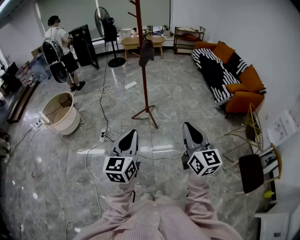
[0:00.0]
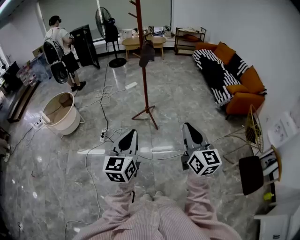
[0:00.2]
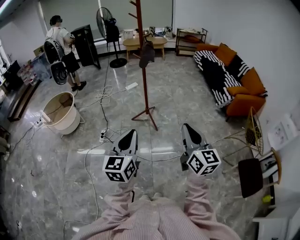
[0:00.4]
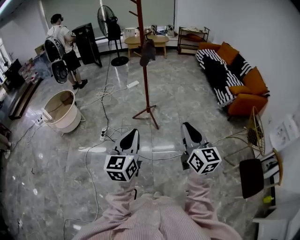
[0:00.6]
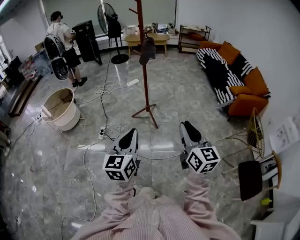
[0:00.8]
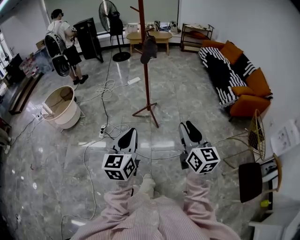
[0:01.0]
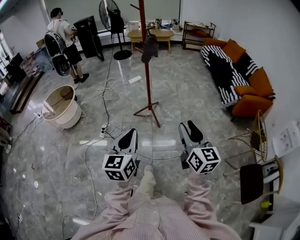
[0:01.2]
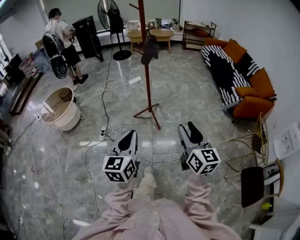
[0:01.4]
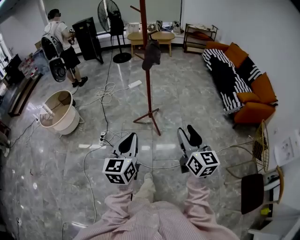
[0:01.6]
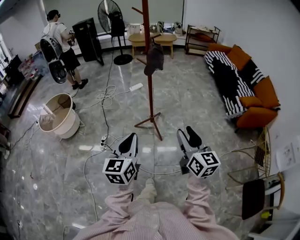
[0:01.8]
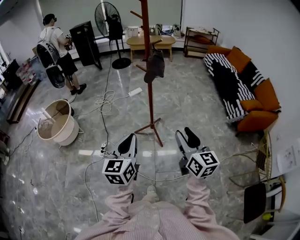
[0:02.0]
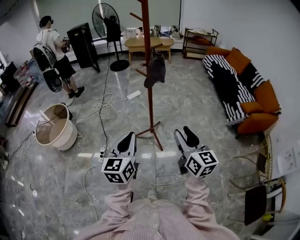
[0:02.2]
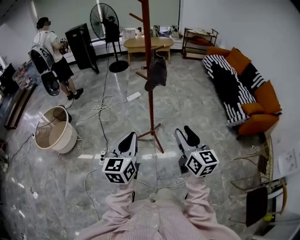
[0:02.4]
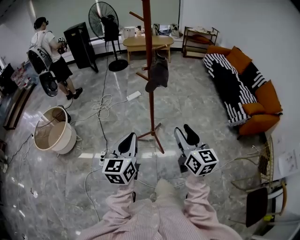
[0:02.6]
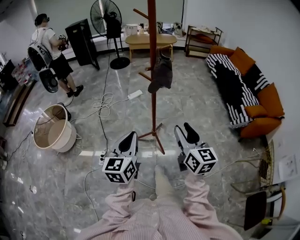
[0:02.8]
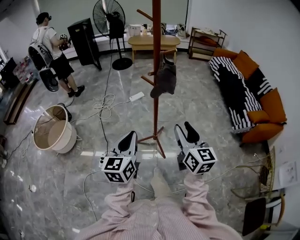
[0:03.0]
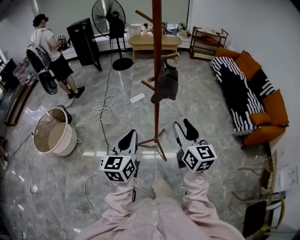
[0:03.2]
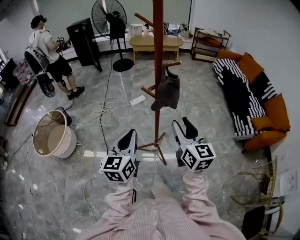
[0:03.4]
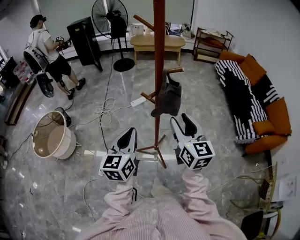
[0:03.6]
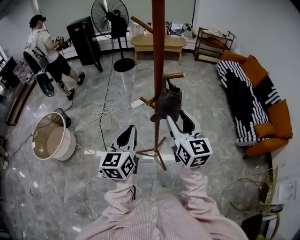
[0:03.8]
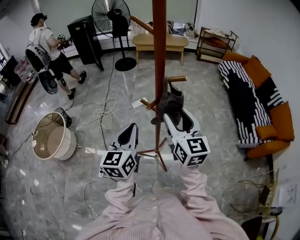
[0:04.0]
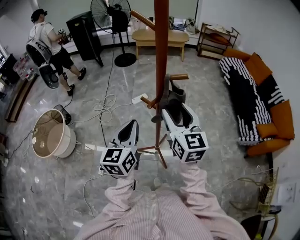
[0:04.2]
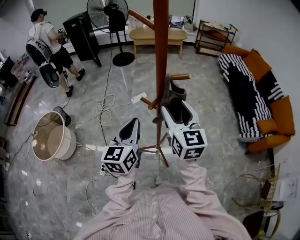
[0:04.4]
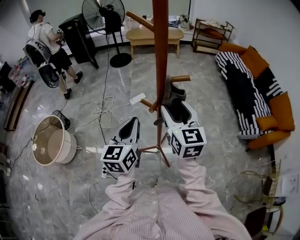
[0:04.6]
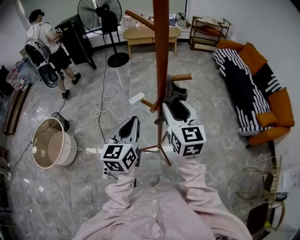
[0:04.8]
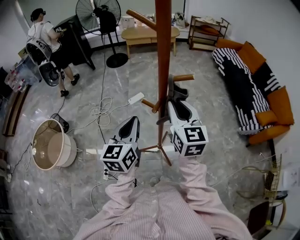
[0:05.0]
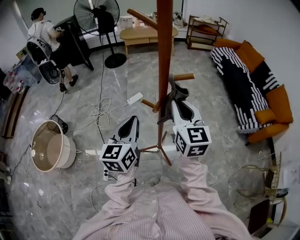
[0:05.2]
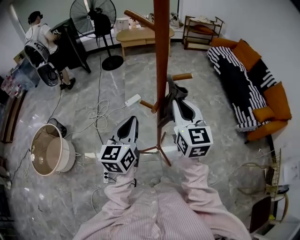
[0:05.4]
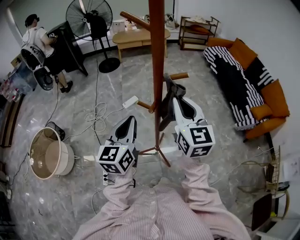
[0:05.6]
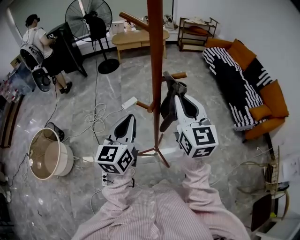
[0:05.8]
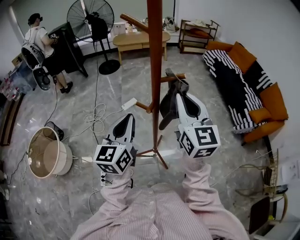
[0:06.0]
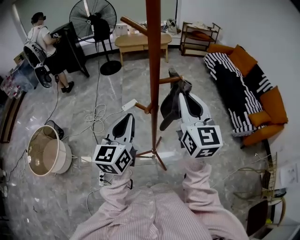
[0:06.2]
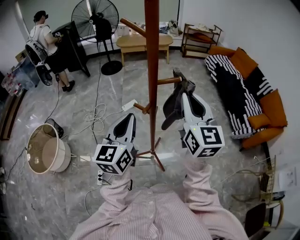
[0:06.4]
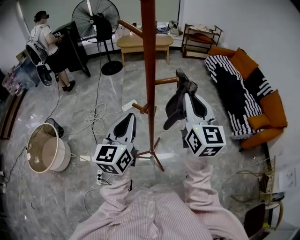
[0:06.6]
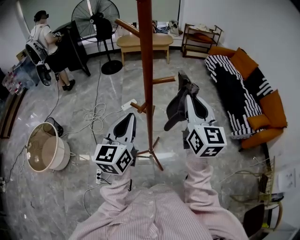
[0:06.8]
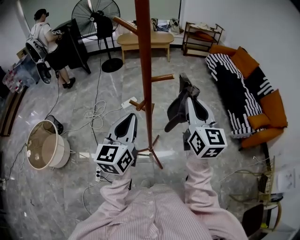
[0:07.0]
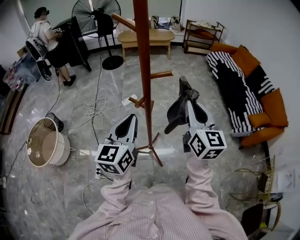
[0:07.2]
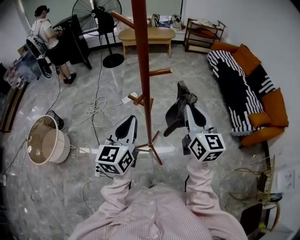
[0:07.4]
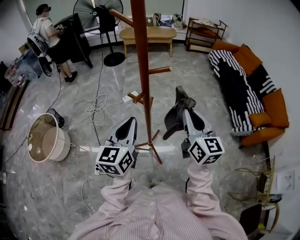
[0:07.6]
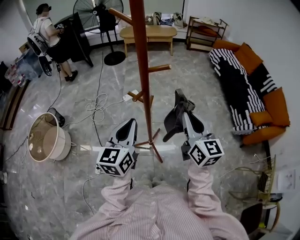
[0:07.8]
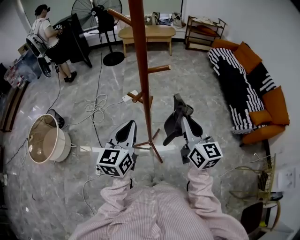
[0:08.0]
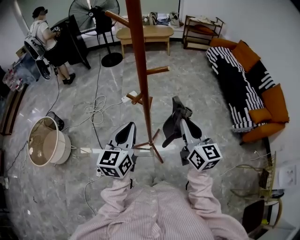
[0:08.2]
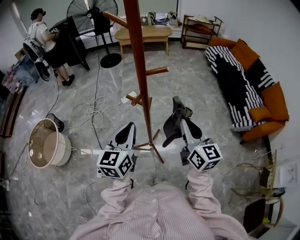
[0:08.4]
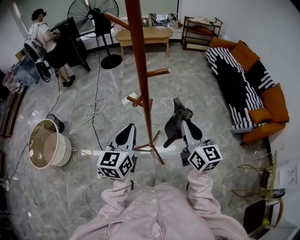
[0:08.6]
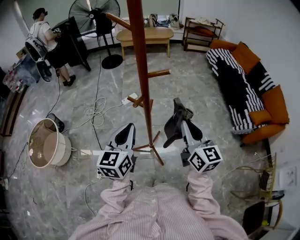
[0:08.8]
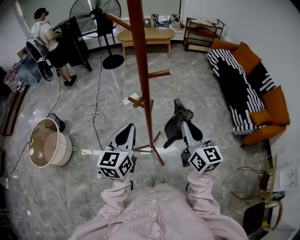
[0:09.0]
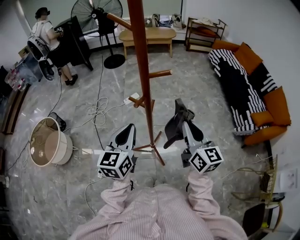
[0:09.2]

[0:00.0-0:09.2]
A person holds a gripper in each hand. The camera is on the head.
0:00.0 to 0:01.6: Both grippers move forward, some 15 cm. The right gripper opens up.
0:01.6 to 0:03.0: The grippers both shift forward by approximately 30 cm.
0:03.0 to 0:04.6: The two grippers go approximately 25 cm forward.
0:04.6 to 0:06.2: The right gripper heads upward, covering roughly 10 cm, and closes its fingers.
0:06.2 to 0:07.6: The right gripper goes approximately 10 cm downward and to the right; the left gripper travels to the right by approximately 5 cm.
0:07.6 to 0:09.2: The grippers make only small movements.

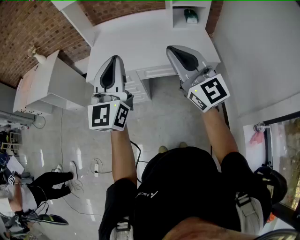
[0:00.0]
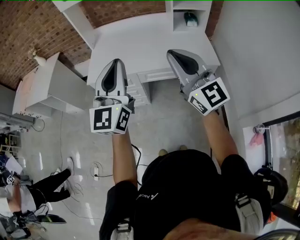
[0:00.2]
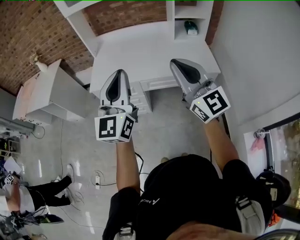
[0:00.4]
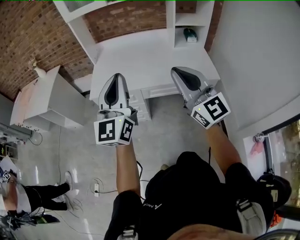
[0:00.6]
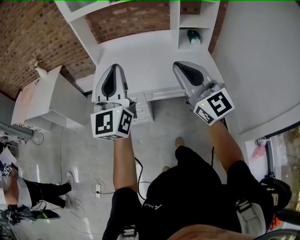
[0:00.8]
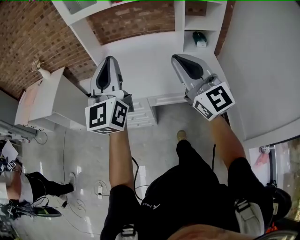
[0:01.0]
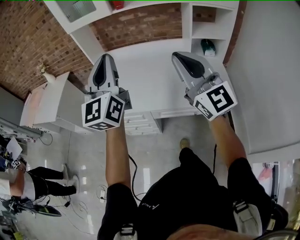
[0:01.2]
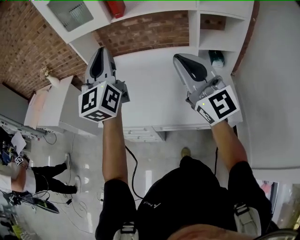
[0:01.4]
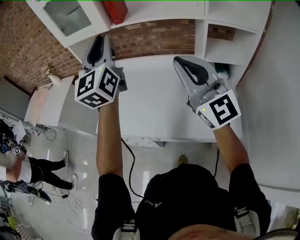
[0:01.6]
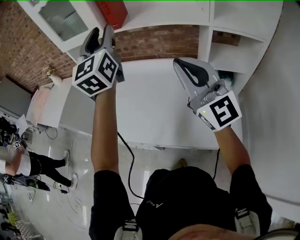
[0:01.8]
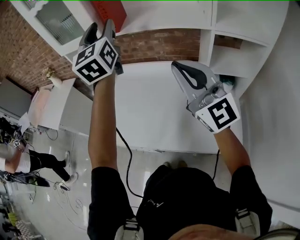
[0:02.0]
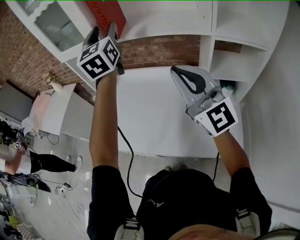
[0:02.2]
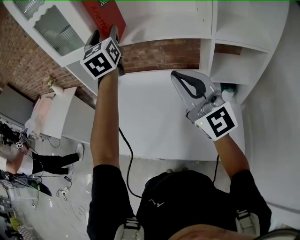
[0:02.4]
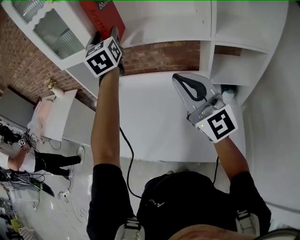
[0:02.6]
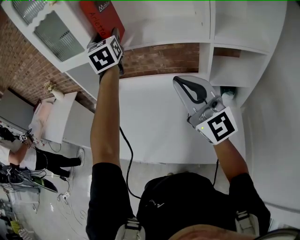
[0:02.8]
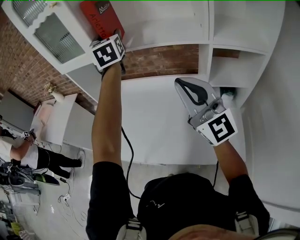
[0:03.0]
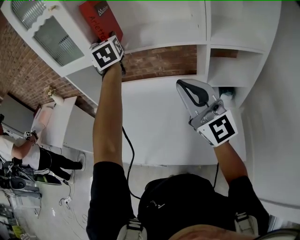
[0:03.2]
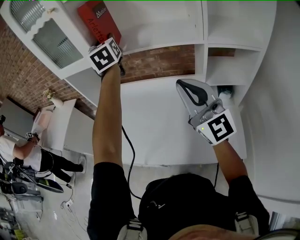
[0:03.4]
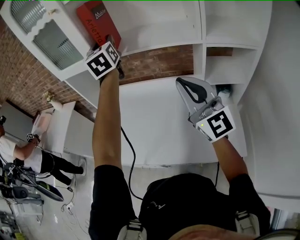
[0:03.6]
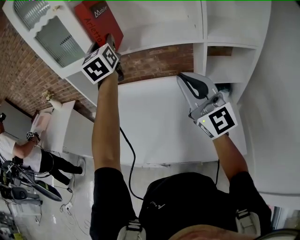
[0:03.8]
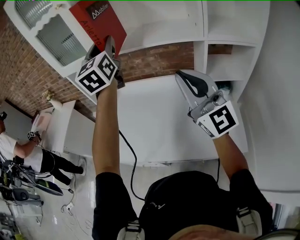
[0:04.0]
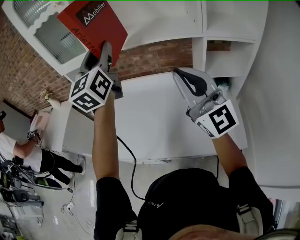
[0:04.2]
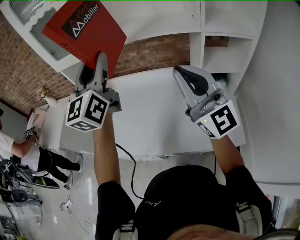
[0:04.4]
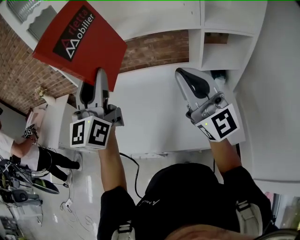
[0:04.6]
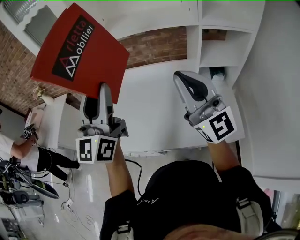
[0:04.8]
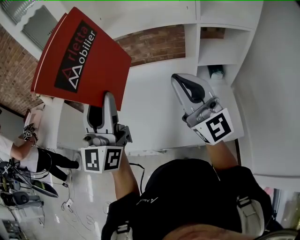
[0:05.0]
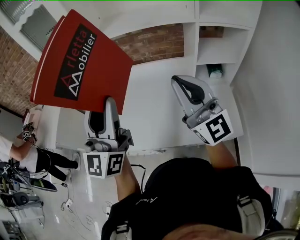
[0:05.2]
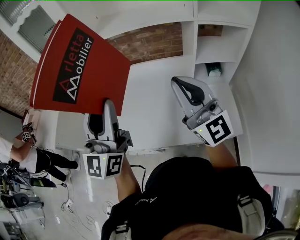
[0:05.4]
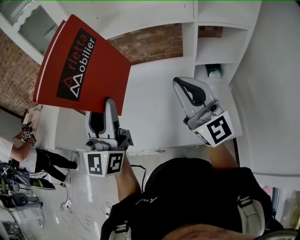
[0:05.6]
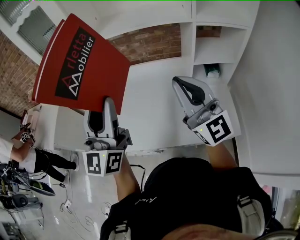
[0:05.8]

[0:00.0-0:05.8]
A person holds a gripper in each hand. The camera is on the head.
0:00.0 to 0:01.4: The two grippers go some 30 cm forward.
0:01.4 to 0:02.8: The left gripper moves forward, some 30 cm, changes its angle by about 20 degrees, and opens. Meanwhile the right gripper is displaced forward and to the right by some 15 cm.
0:02.8 to 0:04.4: The left gripper moves backward, roughly 20 cm, swivels about 30 degrees, and closes up, while the right gripper moves about 5 cm.
0:04.4 to 0:05.8: The left gripper heads backward and downward, covering approximately 15 cm. Meanwhile the right gripper goes roughly 5 cm downward.

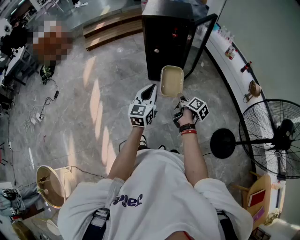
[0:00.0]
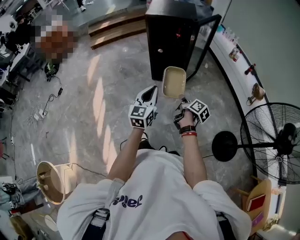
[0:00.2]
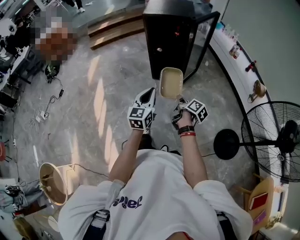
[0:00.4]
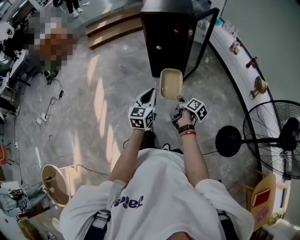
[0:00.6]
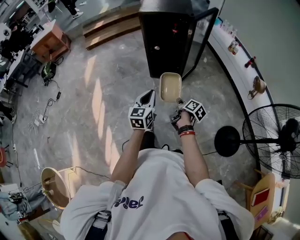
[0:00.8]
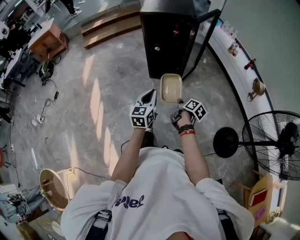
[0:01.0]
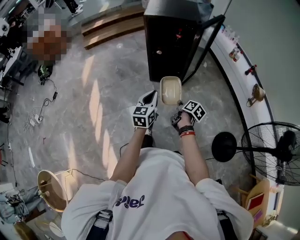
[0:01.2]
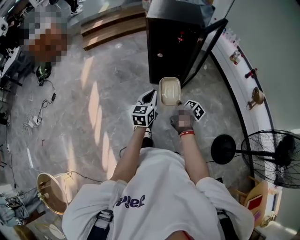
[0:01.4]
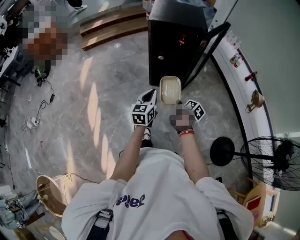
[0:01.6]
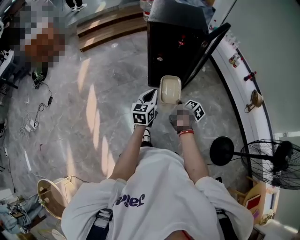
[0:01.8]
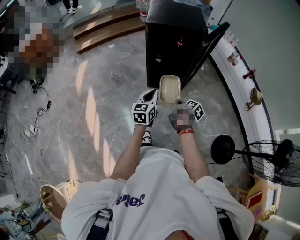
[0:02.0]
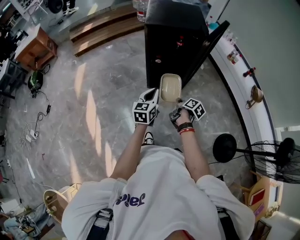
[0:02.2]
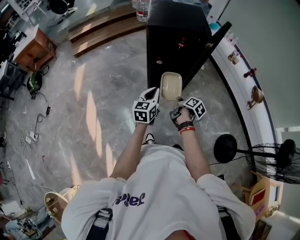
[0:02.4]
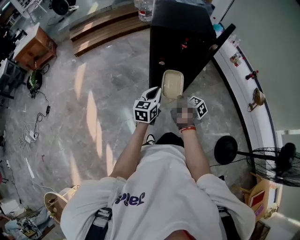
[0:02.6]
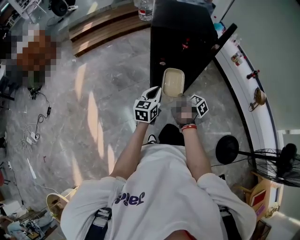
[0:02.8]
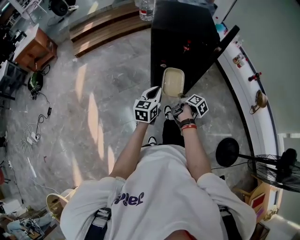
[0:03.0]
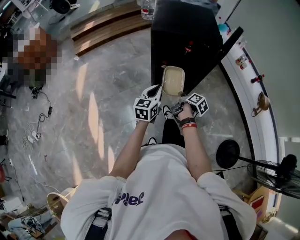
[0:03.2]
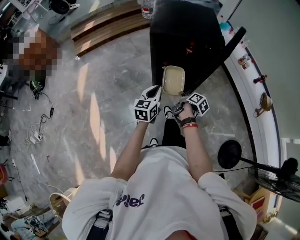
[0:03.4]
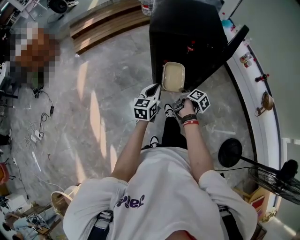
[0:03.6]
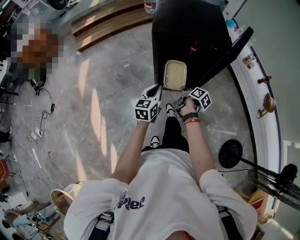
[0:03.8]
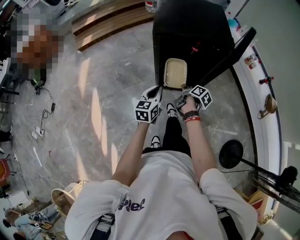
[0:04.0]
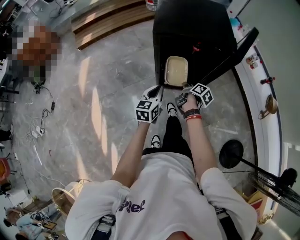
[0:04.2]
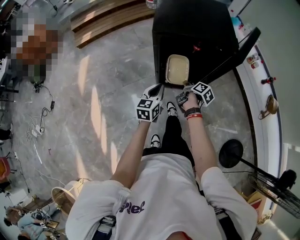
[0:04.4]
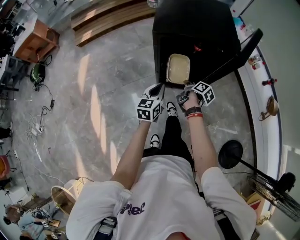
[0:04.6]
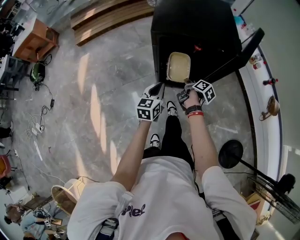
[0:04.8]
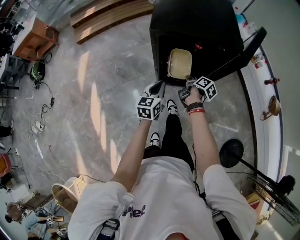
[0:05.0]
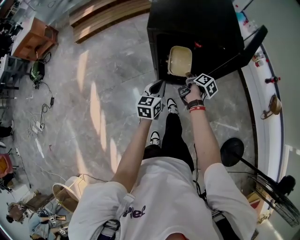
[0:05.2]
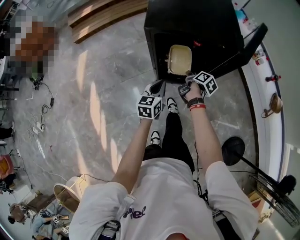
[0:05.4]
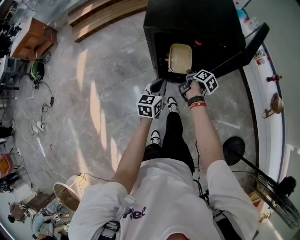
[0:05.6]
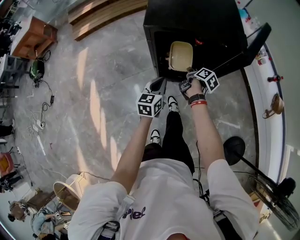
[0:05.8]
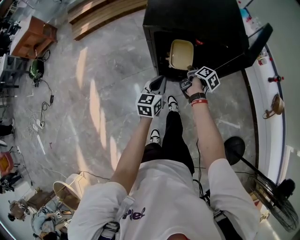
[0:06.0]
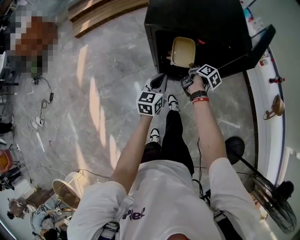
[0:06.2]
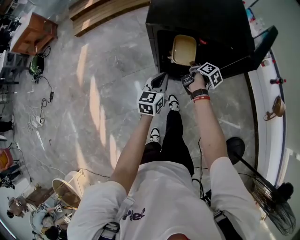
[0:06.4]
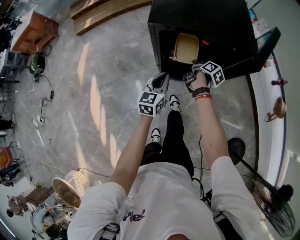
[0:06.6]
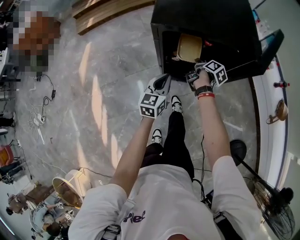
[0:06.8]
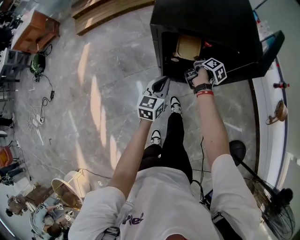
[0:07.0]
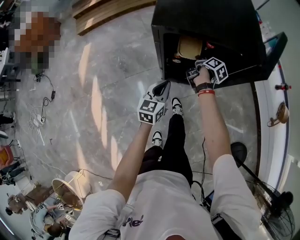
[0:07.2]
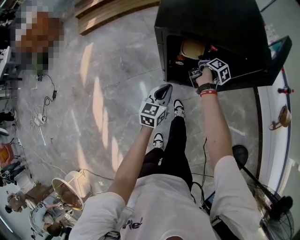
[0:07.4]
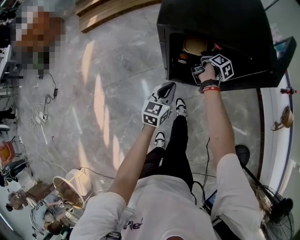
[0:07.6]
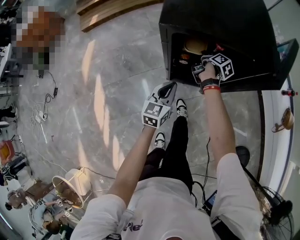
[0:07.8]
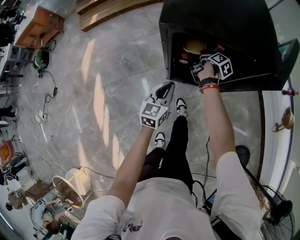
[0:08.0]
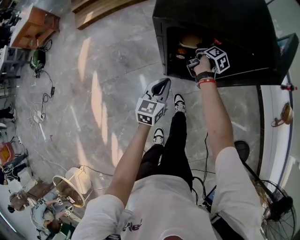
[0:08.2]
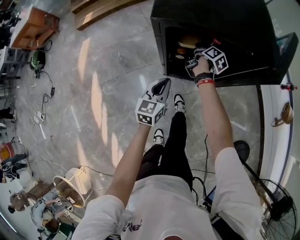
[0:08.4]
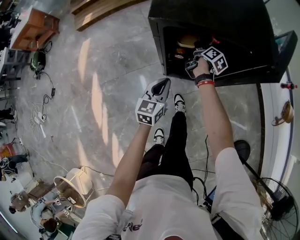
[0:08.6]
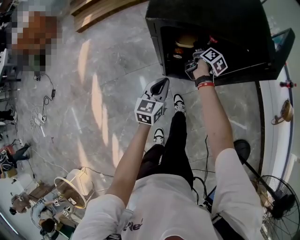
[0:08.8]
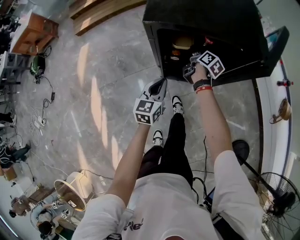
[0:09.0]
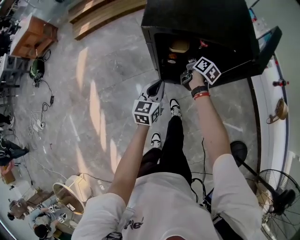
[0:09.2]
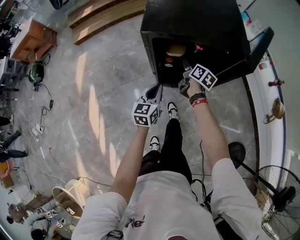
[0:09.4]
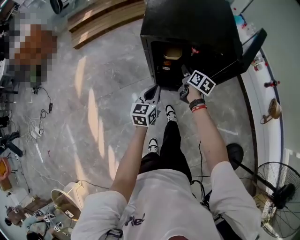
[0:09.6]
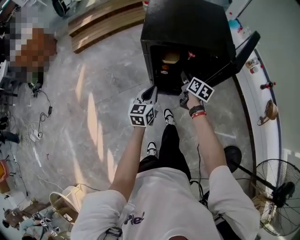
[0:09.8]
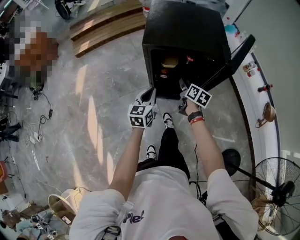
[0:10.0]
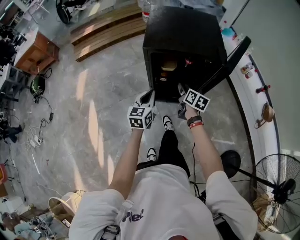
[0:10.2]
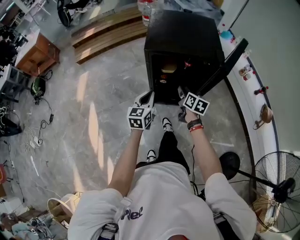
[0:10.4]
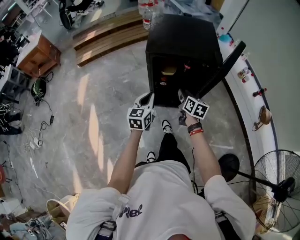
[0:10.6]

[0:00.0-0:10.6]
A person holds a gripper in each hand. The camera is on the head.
0:00.0 to 0:01.6: The two grippers go some 20 cm forward and downward.
0:01.6 to 0:03.0: The right gripper travels forward and to the left by about 20 cm, while the left gripper moves forward, roughly 20 cm.
0:03.0 to 0:04.6: The left gripper shifts some 20 cm forward and downward, while the right gripper is displaced forward by some 20 cm.
0:04.6 to 0:06.0: The left gripper heads forward, covering some 5 cm; the right gripper heads forward, covering about 10 cm.
0:06.0 to 0:07.6: The right gripper moves forward, approximately 15 cm. The left gripper heads downward, covering approximately 5 cm.
0:07.6 to 0:09.0: The right gripper opens.
0:09.0 to 0:10.6: The left gripper travels upward and backward by about 20 cm. Meanwhile the right gripper heads backward and upward, covering some 30 cm, and changes its angle by about 30 degrees.
